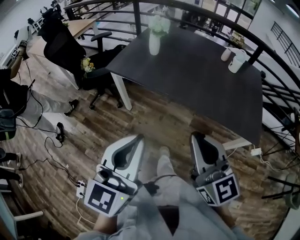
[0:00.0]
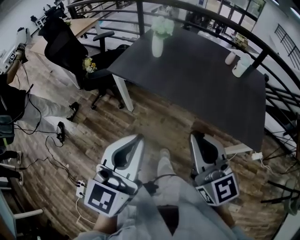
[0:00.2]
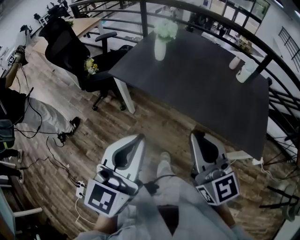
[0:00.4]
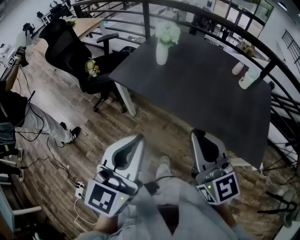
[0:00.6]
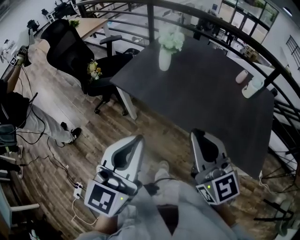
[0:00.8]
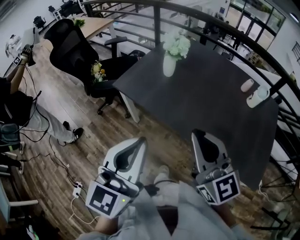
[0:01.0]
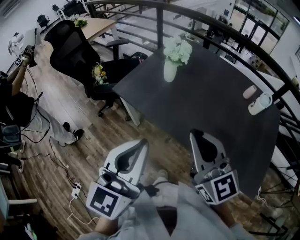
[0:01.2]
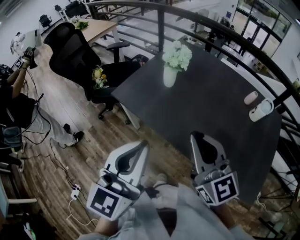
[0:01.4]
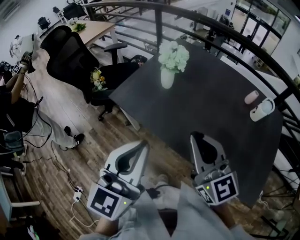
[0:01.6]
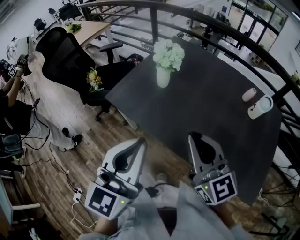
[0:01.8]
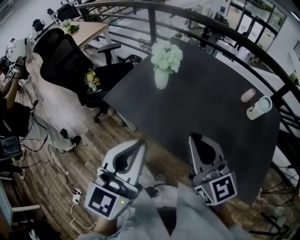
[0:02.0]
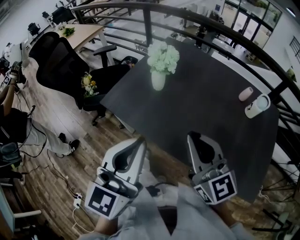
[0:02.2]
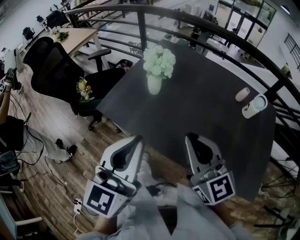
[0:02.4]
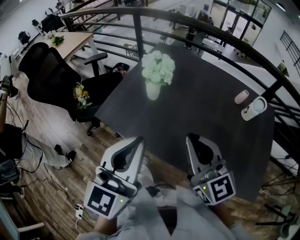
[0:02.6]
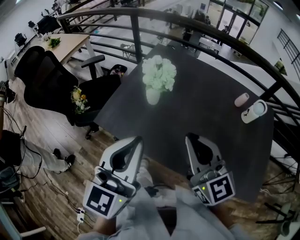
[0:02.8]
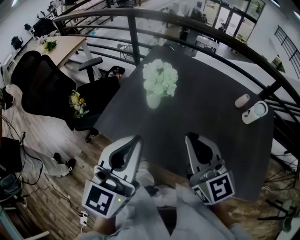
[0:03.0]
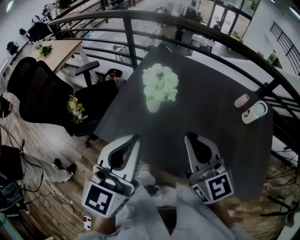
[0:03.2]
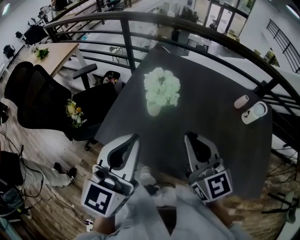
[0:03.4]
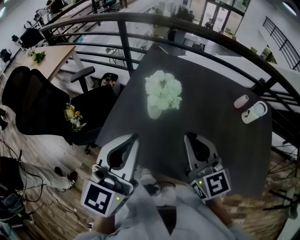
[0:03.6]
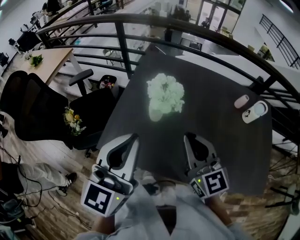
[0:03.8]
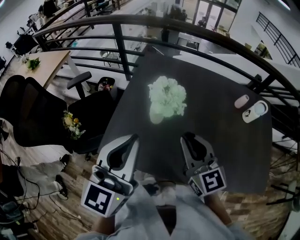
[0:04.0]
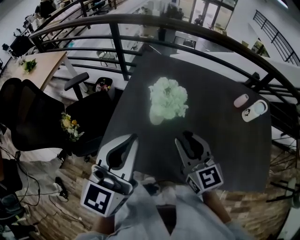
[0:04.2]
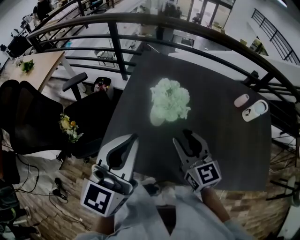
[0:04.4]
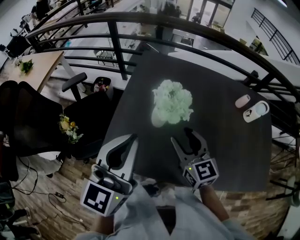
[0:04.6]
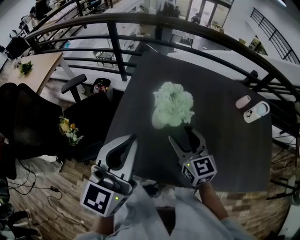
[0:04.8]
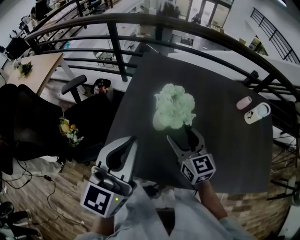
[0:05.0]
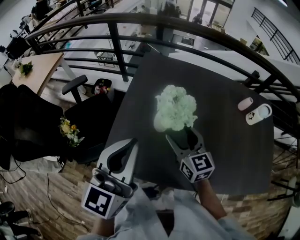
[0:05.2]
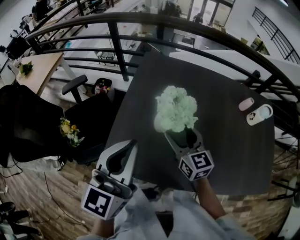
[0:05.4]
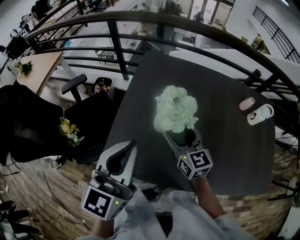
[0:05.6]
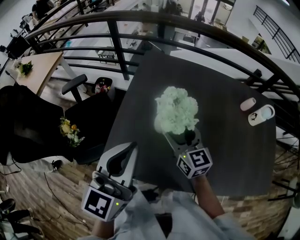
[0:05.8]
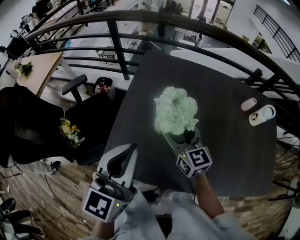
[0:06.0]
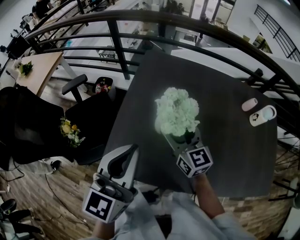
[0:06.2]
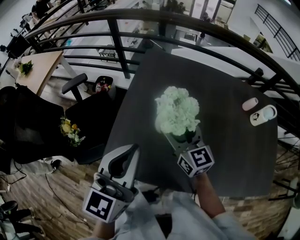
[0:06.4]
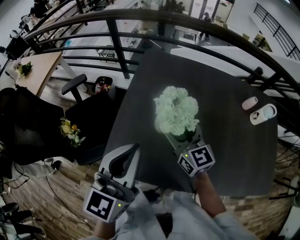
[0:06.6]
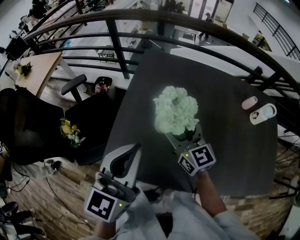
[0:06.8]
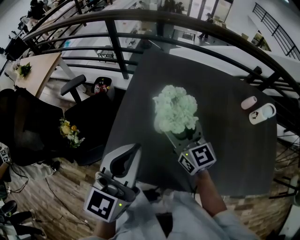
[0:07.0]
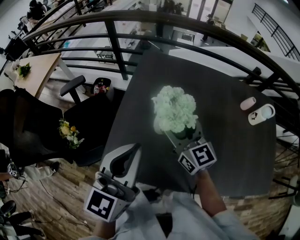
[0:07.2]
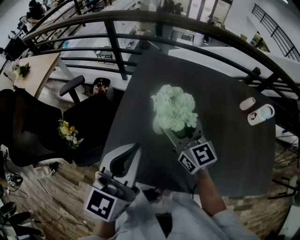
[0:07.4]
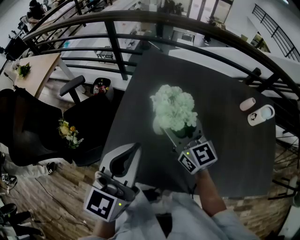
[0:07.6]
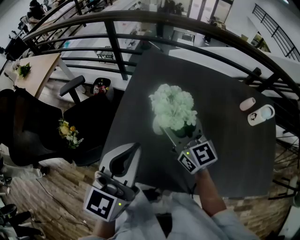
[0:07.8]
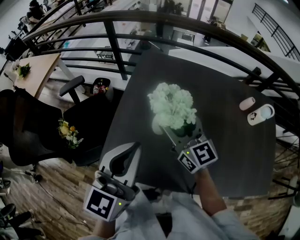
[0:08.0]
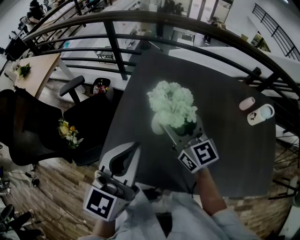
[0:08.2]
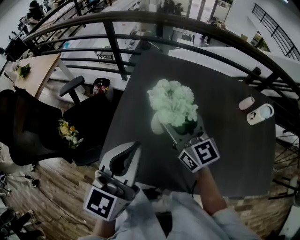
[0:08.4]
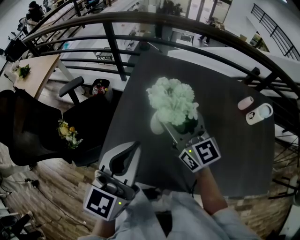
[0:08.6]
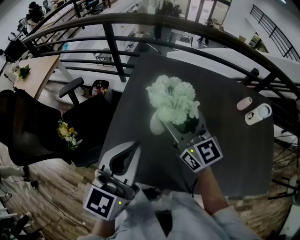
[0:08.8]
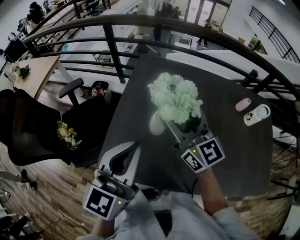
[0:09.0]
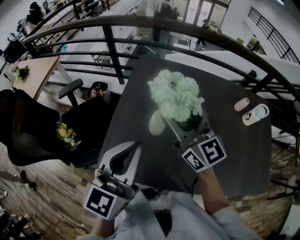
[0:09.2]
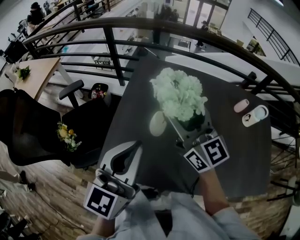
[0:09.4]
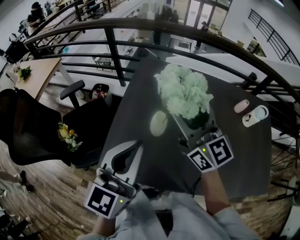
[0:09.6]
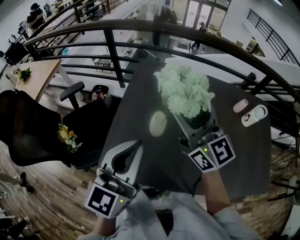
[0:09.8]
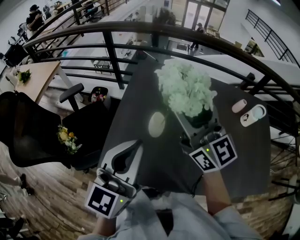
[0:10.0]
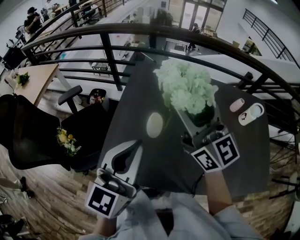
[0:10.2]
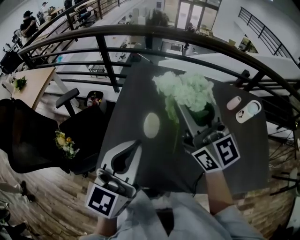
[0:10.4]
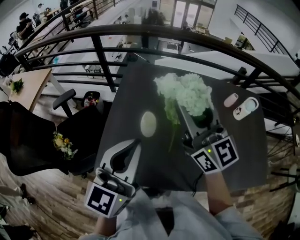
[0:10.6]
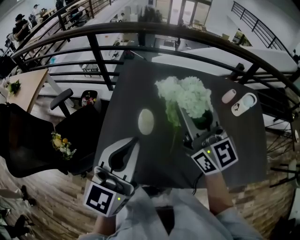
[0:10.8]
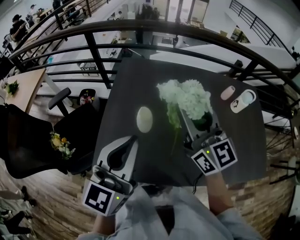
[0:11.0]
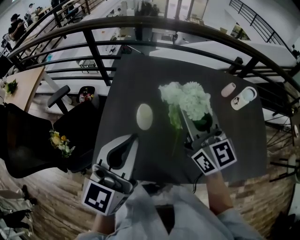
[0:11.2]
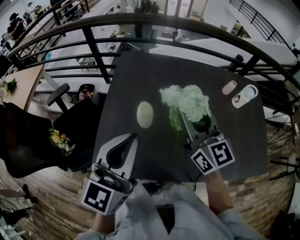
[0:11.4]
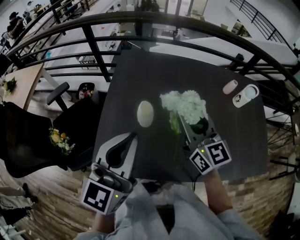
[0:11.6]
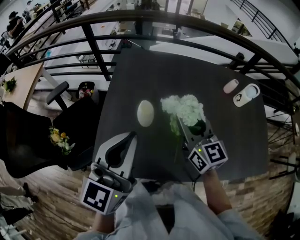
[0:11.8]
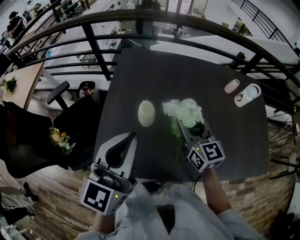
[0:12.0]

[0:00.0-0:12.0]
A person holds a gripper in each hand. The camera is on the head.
0:00.0 to 0:01.6: The two grippers go roughly 25 cm forward.
0:01.6 to 0:03.0: The grippers both shift forward by roughly 15 cm.
0:03.0 to 0:04.4: The left gripper heads forward and to the left, covering roughly 15 cm. Meanwhile the right gripper is displaced forward, downward and to the left by some 15 cm, and opens up.
0:04.4 to 0:06.0: The right gripper is displaced forward by approximately 10 cm, and opens.
0:06.0 to 0:07.6: The right gripper shifts about 5 cm upward.
0:07.6 to 0:09.0: The right gripper travels upward by approximately 5 cm.
0:09.0 to 0:10.4: The right gripper moves upward, some 10 cm.
0:10.4 to 0:12.0: The right gripper is displaced downward by approximately 20 cm, and swivels some 30 degrees.

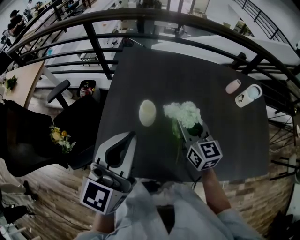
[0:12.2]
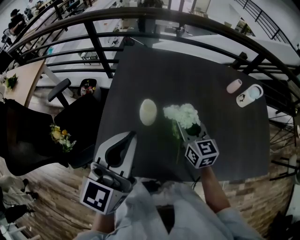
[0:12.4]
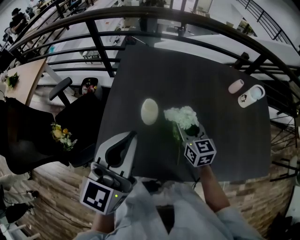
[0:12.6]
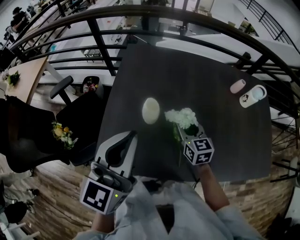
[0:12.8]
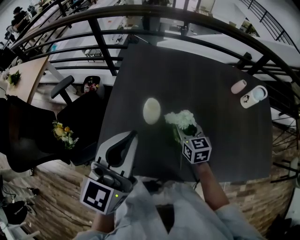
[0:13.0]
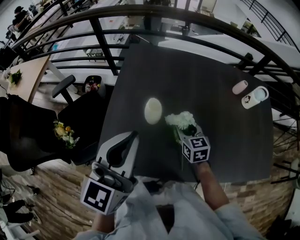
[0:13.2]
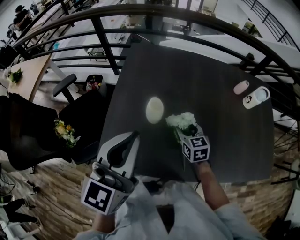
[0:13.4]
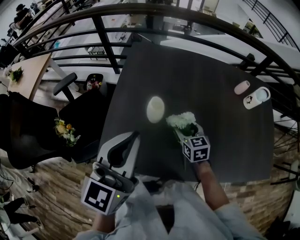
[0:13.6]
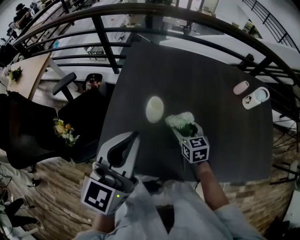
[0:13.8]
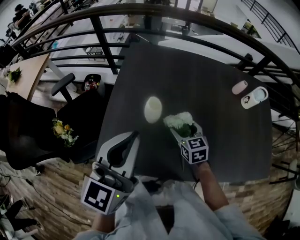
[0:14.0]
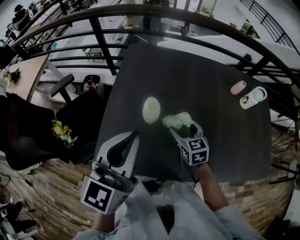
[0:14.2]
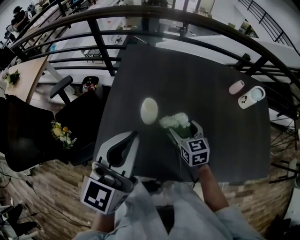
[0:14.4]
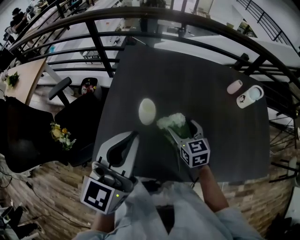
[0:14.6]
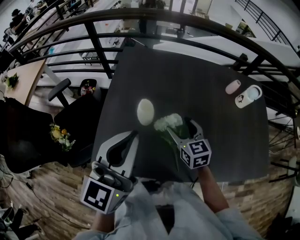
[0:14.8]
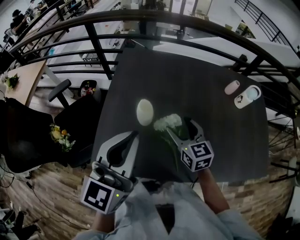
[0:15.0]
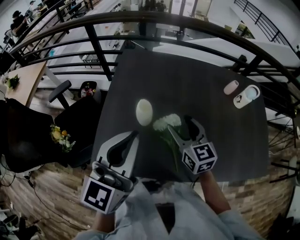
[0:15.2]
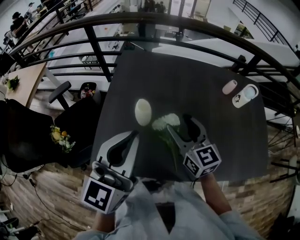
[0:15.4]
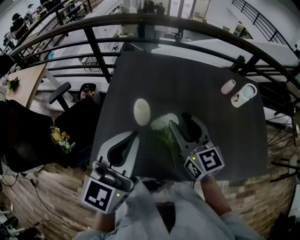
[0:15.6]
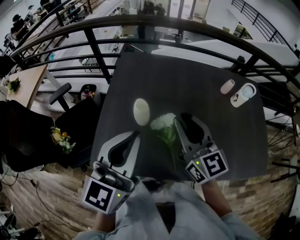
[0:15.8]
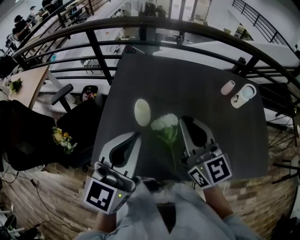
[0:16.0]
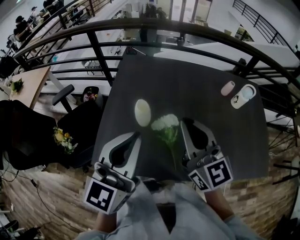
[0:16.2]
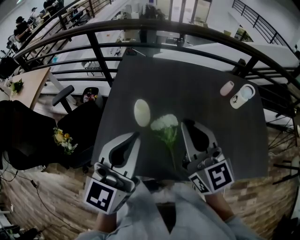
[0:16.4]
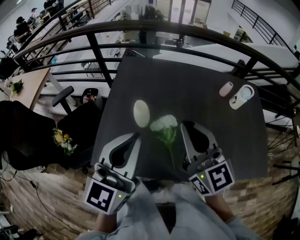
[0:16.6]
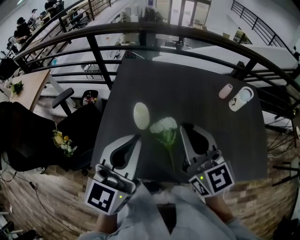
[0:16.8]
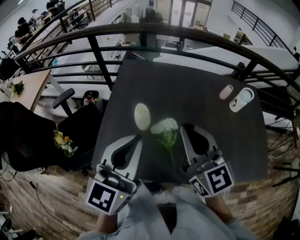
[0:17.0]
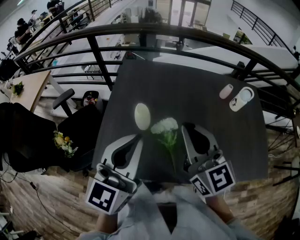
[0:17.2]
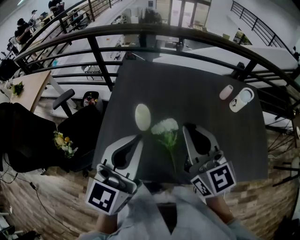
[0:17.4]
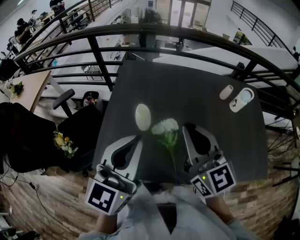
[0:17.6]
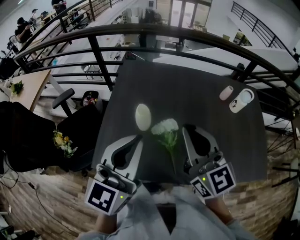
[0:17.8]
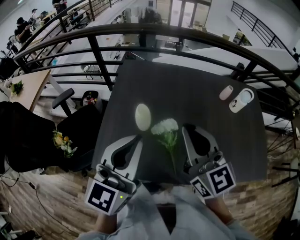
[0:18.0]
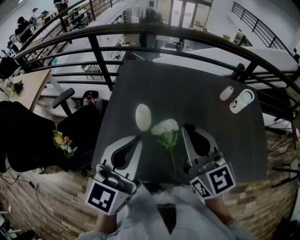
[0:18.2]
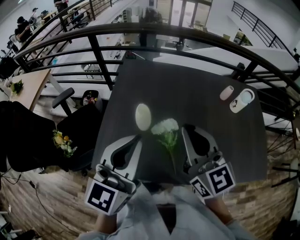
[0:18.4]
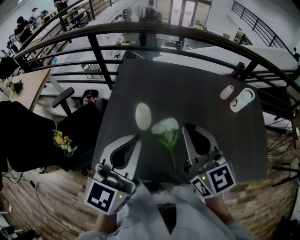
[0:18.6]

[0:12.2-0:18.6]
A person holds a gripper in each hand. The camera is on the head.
0:12.2 to 0:13.8: The right gripper goes about 15 cm downward, rotates roughly 20 degrees, and opens up.
0:13.8 to 0:15.4: The right gripper shifts some 15 cm upward, and rotates approximately 20 degrees.
0:15.4 to 0:17.0: The right gripper moves upward and backward, some 15 cm, and closes.
0:17.0 to 0:18.6: The two grippers keep their place.

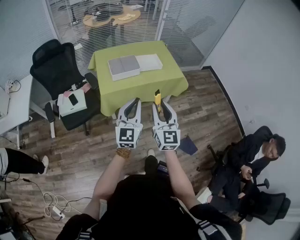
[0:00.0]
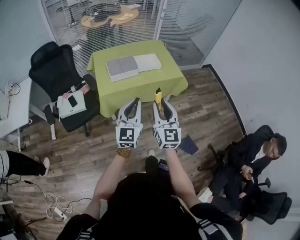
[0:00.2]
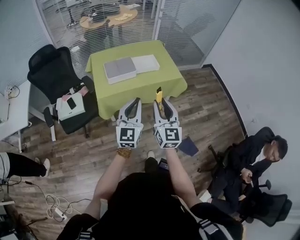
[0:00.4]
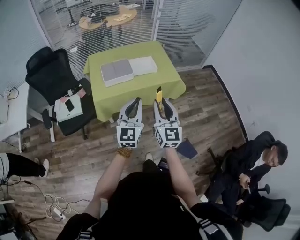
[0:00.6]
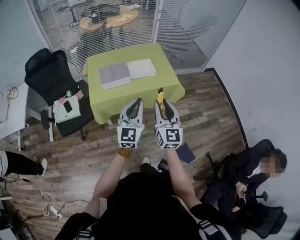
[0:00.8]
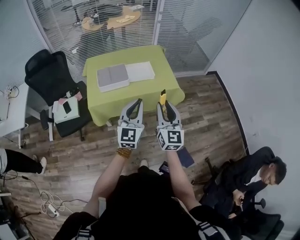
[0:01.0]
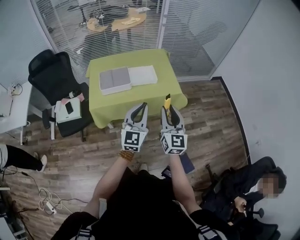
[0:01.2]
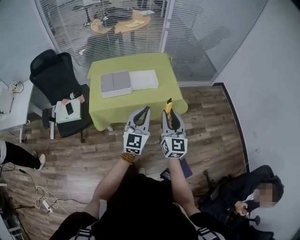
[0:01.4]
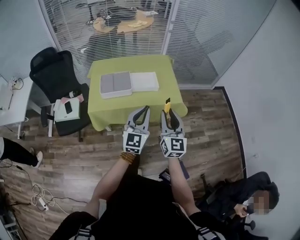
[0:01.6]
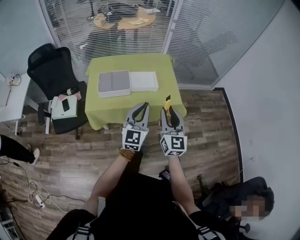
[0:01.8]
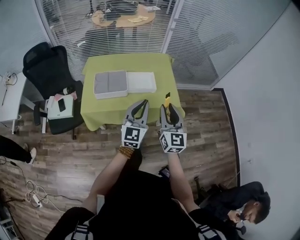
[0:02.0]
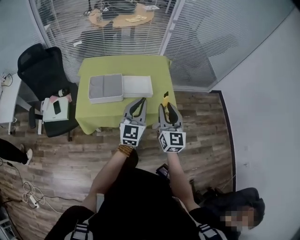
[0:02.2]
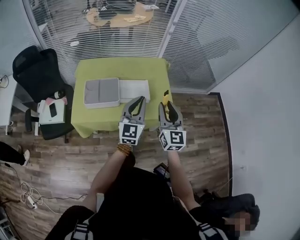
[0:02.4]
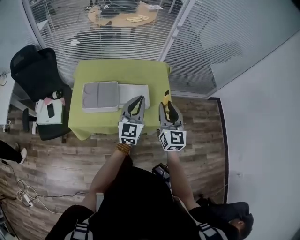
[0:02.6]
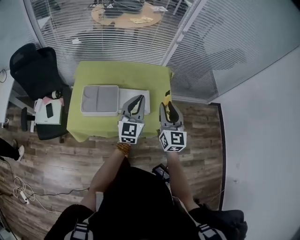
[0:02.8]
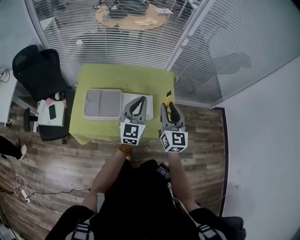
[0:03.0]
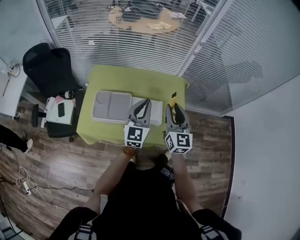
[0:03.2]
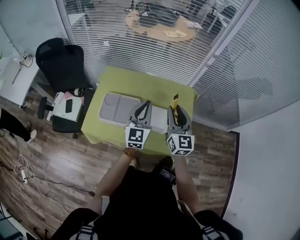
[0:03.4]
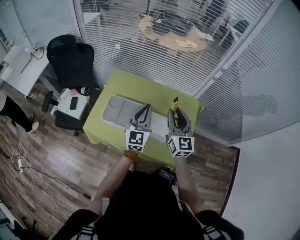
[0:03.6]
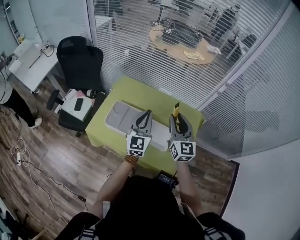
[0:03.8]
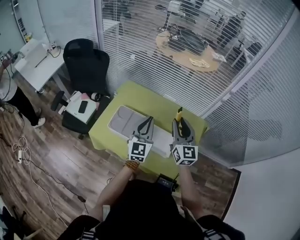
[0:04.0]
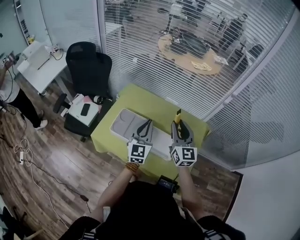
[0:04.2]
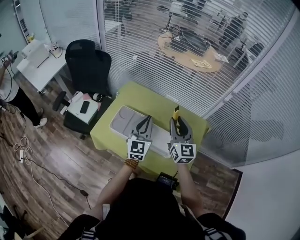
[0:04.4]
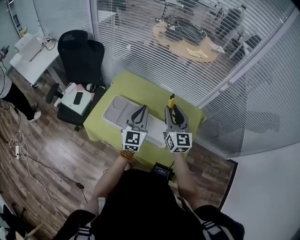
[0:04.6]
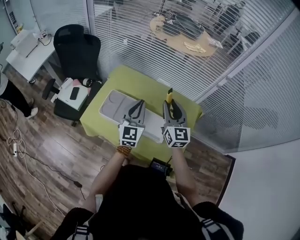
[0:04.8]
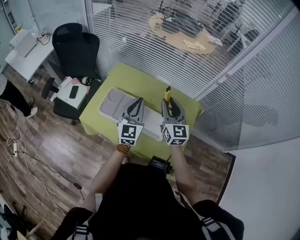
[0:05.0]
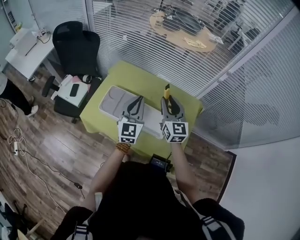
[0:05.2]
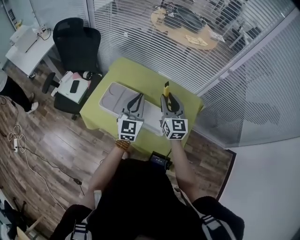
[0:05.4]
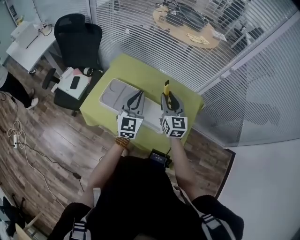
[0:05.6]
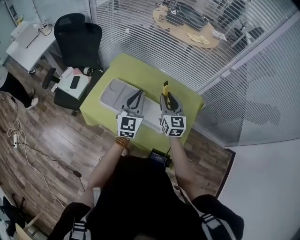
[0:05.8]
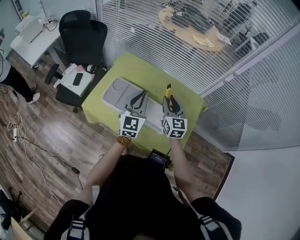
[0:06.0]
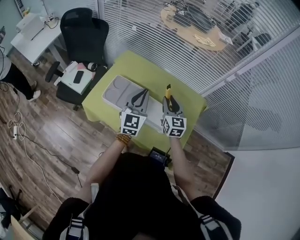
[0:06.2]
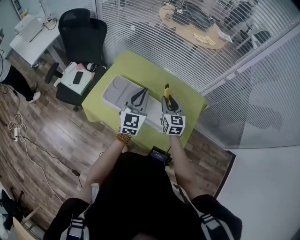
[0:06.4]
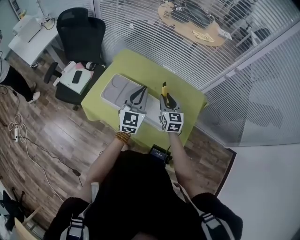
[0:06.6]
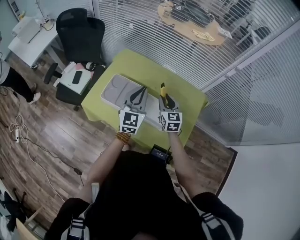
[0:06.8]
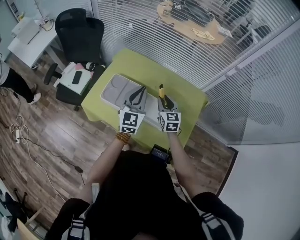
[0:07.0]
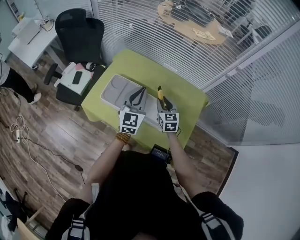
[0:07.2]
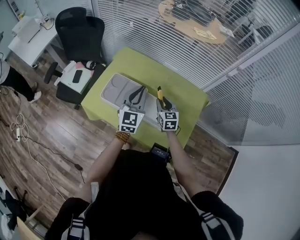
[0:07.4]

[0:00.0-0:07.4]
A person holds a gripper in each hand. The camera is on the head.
0:00.0 to 0:01.4: The left gripper moves to the right and forward, about 25 cm. The right gripper heads forward and to the right, covering about 25 cm.
0:01.4 to 0:03.0: The two grippers go approximately 35 cm forward.
0:03.0 to 0:04.4: The left gripper changes place by some 15 cm, and changes its angle by some 30 degrees; the right gripper moves roughly 15 cm, and swivels about 30 degrees.
0:04.4 to 0:06.0: The right gripper shifts roughly 10 cm downward.
0:06.0 to 0:07.4: The right gripper is displaced downward by about 15 cm.
